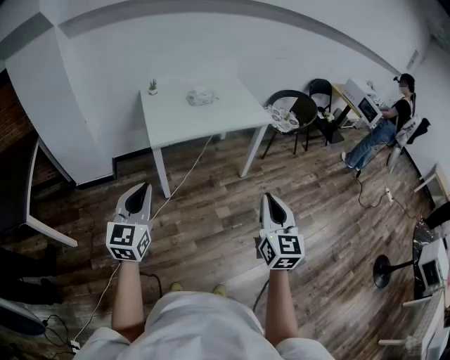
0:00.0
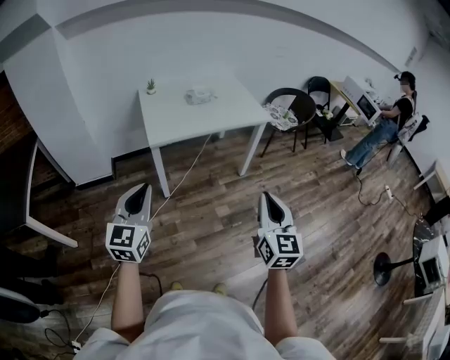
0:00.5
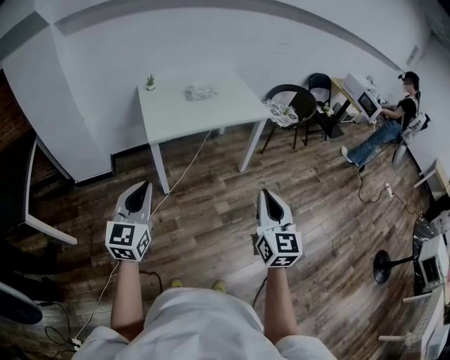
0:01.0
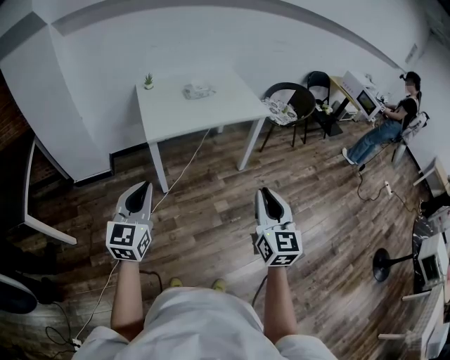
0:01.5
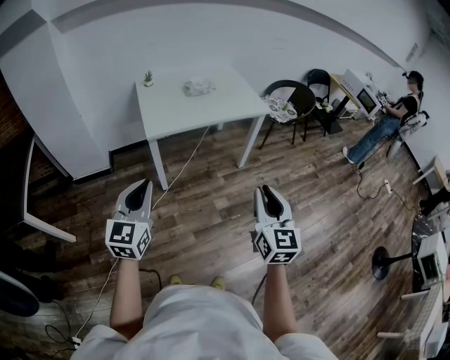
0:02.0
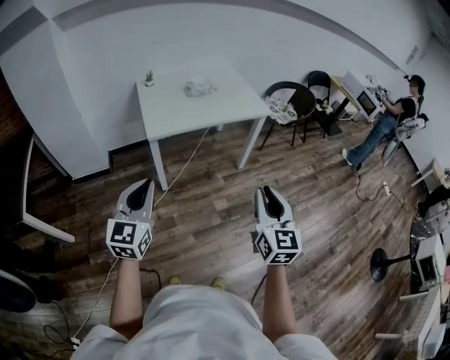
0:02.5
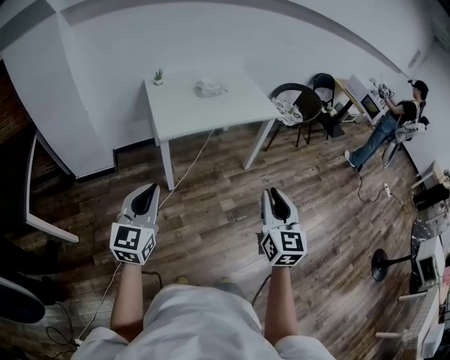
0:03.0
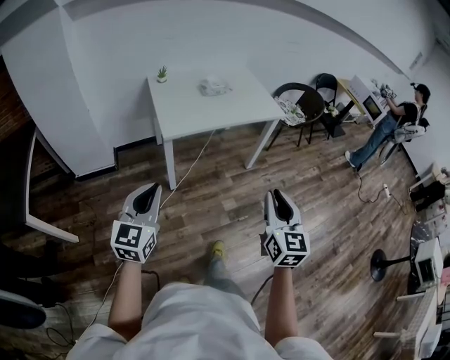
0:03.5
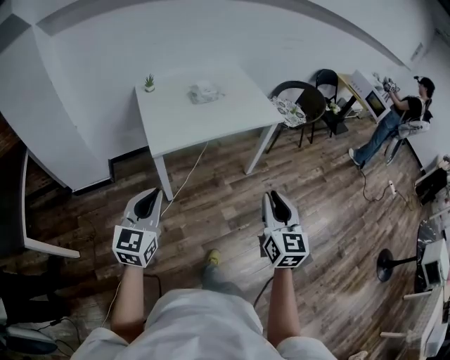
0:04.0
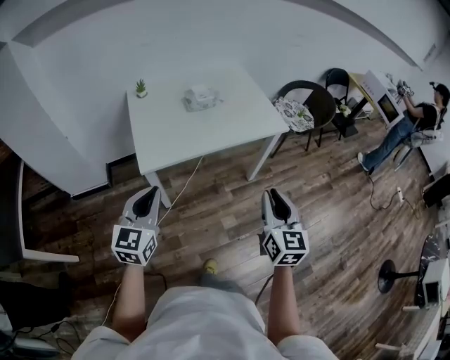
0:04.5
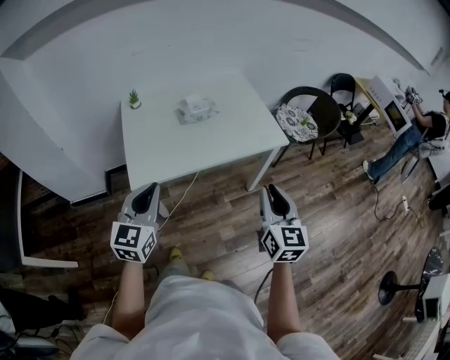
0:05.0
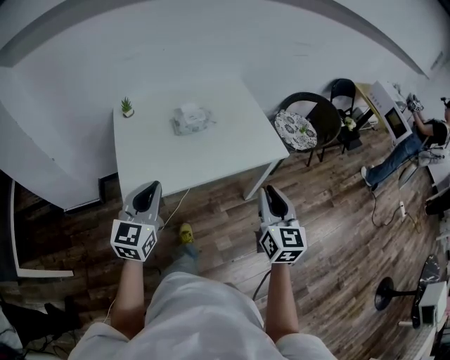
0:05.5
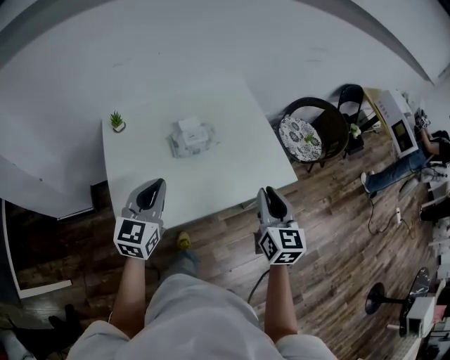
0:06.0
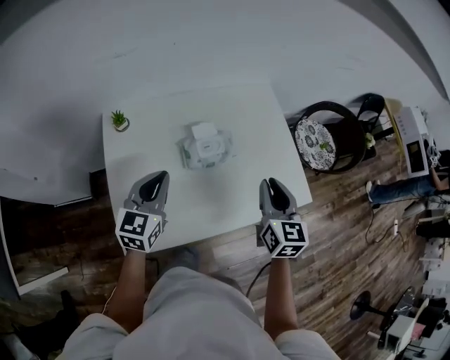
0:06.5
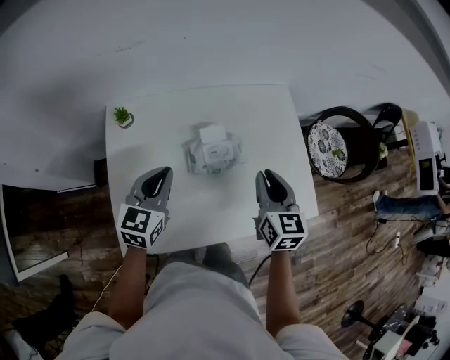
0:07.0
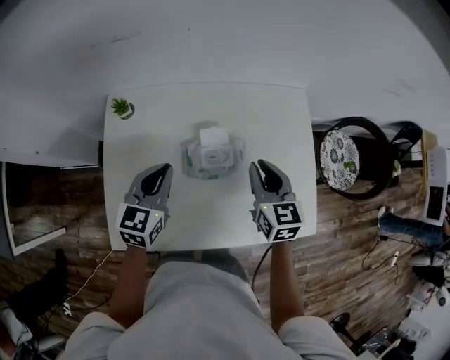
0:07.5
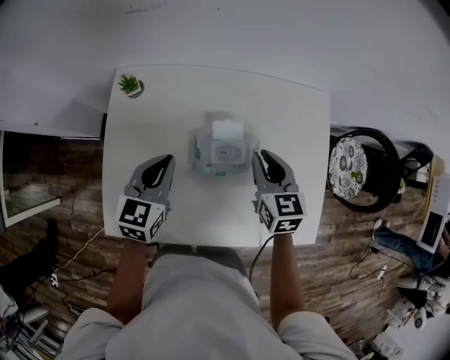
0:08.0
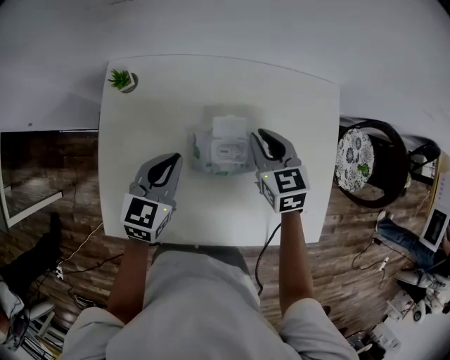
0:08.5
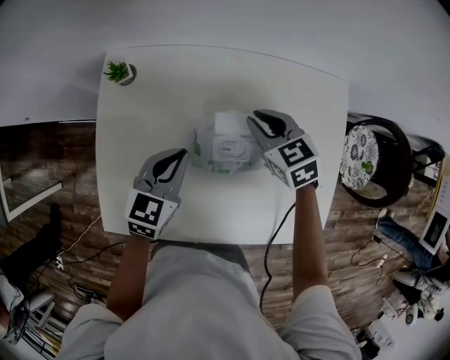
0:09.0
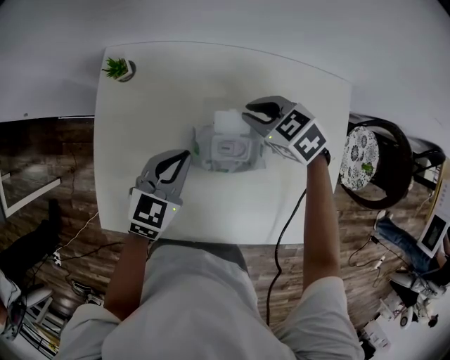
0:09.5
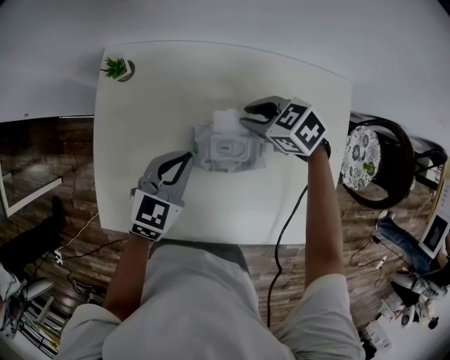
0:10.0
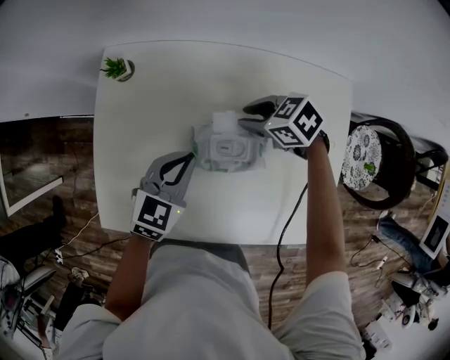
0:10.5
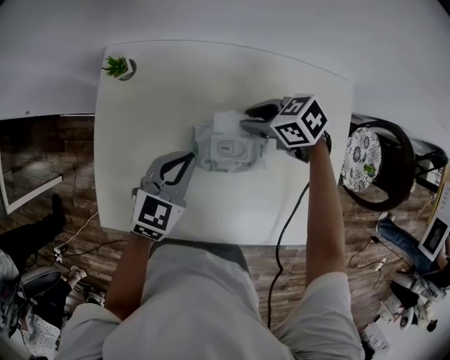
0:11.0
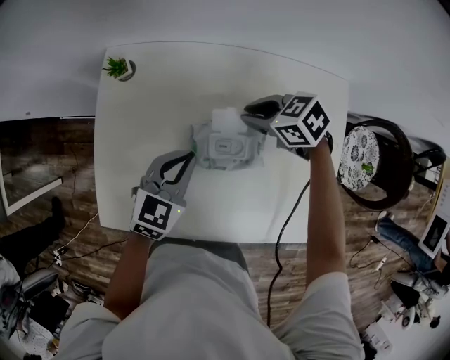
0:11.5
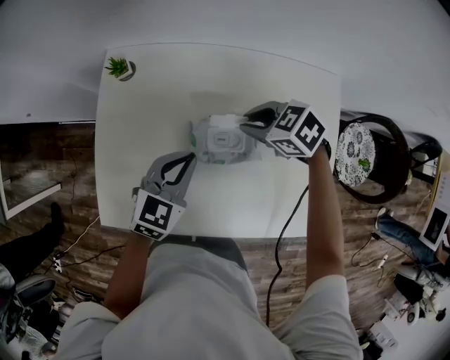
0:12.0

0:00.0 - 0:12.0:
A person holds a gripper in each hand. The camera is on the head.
0:00.0 - 0:02.0: The grippers make only small movements.
0:02.0 - 0:04.0: The grippers both shift forward and to the left by approximately 15 cm.
0:04.0 - 0:06.0: Both grippers are carried forward, about 50 cm.
0:06.0 - 0:08.0: Both grippers travel together forward and downward, about 30 cm. The left gripper swivels some 30 degrees. The right gripper rotates about 40 degrees.
0:08.0 - 0:10.0: The right gripper changes place by some 15 cm, and rotates some 60 degrees. Meanwhile the left gripper heads downward, covering approximately 5 cm.
0:10.0 - 0:12.0: The right gripper shifts by about 5 cm.

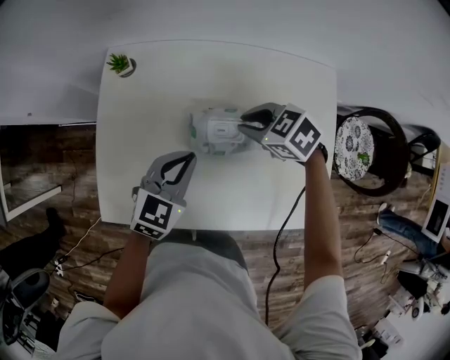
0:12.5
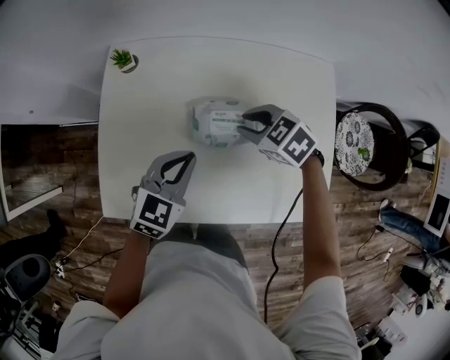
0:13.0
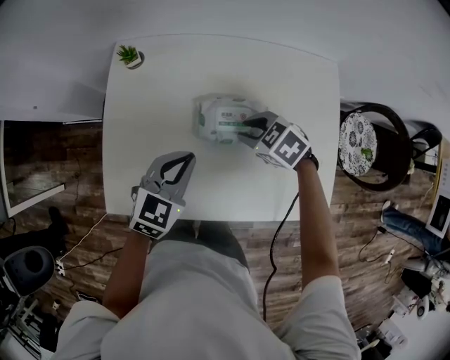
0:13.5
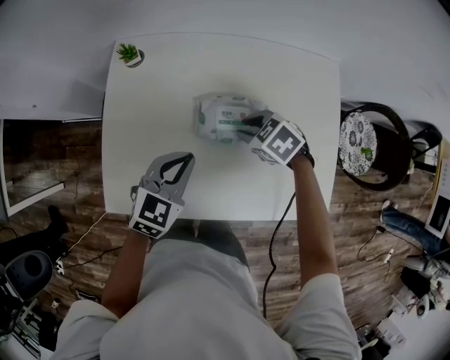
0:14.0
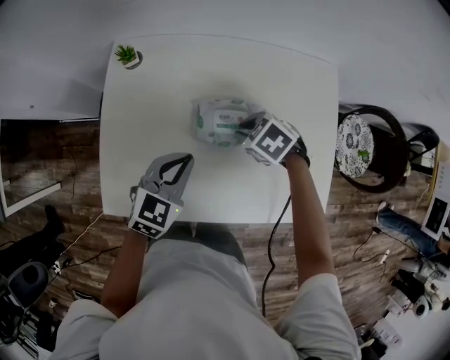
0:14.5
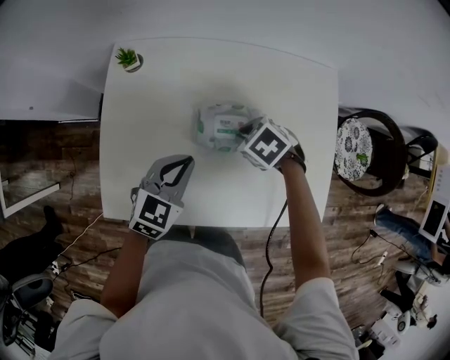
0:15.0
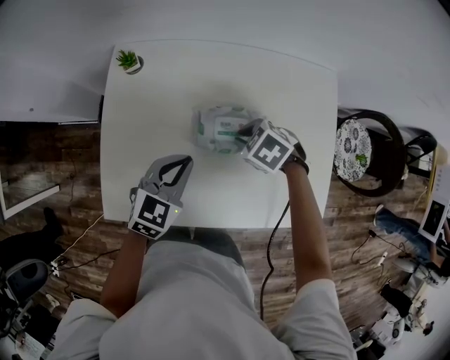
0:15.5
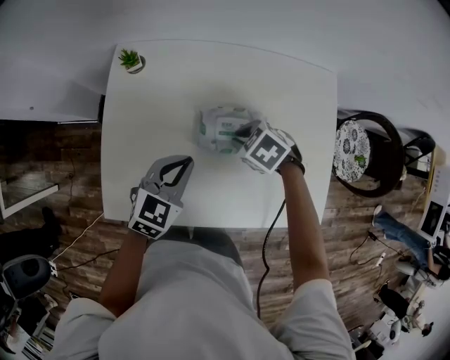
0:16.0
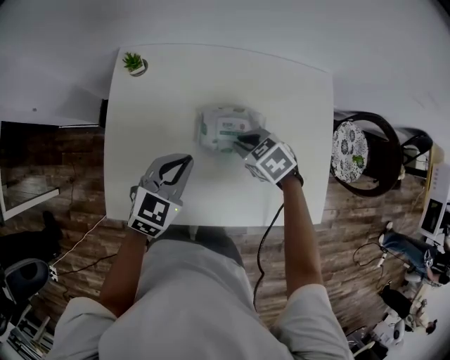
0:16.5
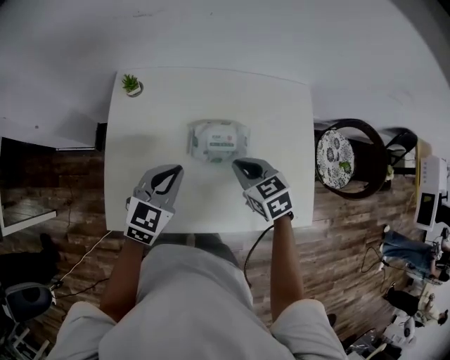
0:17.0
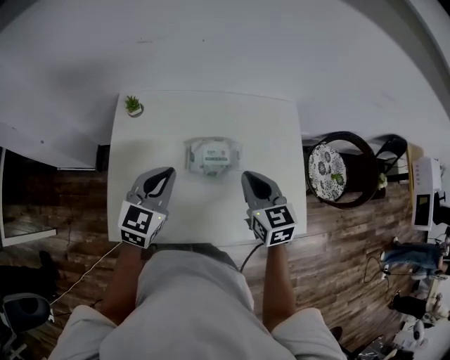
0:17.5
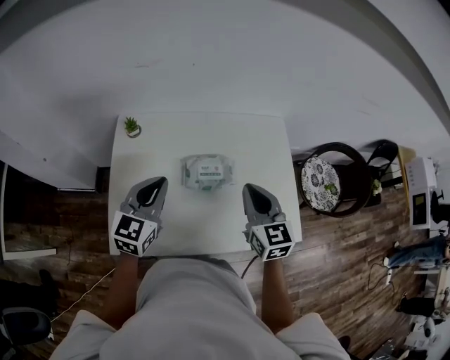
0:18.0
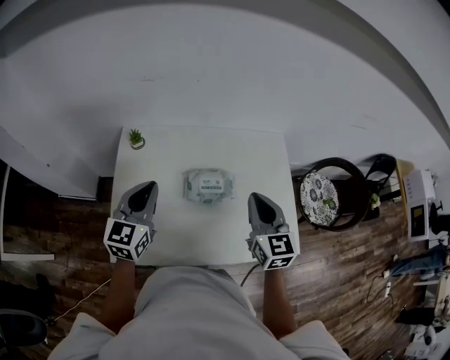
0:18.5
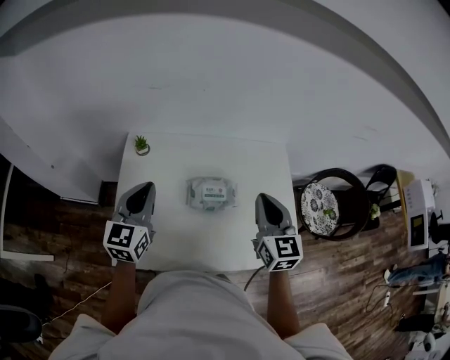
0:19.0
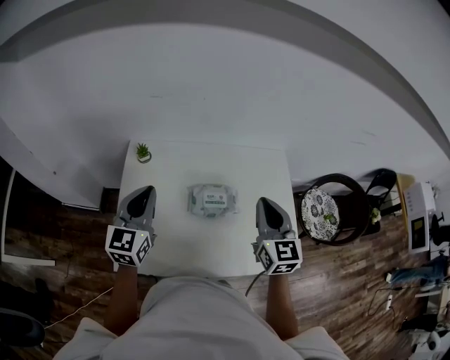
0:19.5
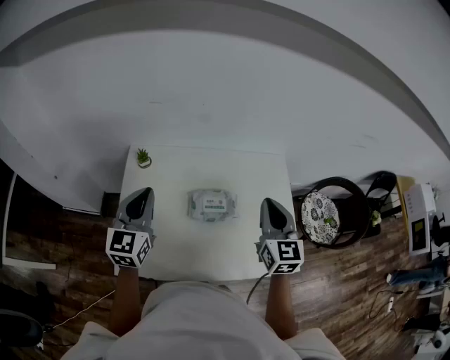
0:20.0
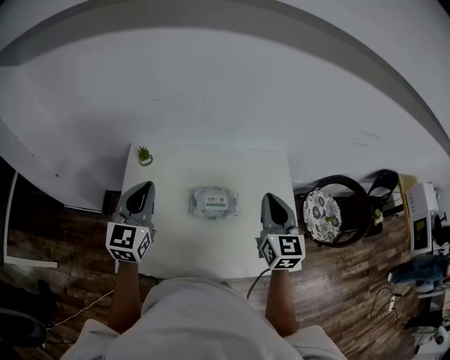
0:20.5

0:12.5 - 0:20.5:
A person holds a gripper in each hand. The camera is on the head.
0:12.5 - 0:14.5: The right gripper shifts about 5 cm downward.
0:14.5 - 0:16.5: The grippers make only small movements.
0:16.5 - 0:18.5: The right gripper is displaced upward by some 25 cm, and tips its fingers upward by some 50 degrees. Meanwhile the left gripper goes some 15 cm upward and to the left, and changes its angle by some 30 degrees.
0:18.5 - 0:20.5: The right gripper ends up roughly 5 cm from where it was, while the left gripper ends up some 5 cm from where it was.

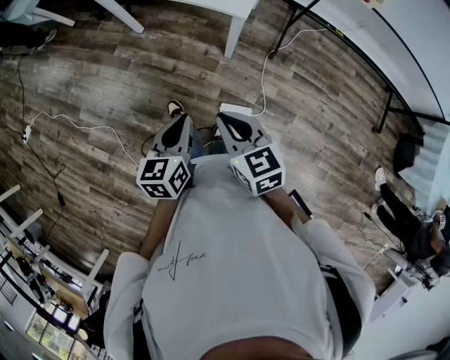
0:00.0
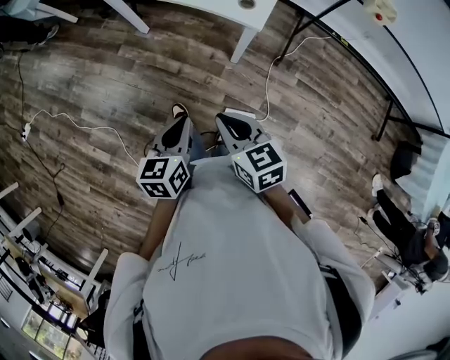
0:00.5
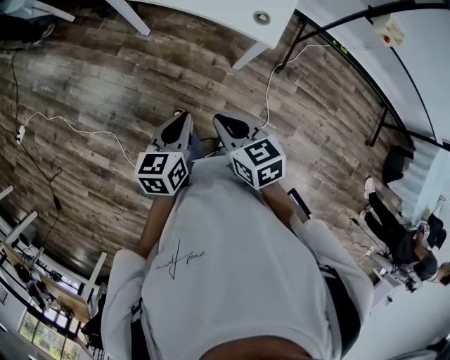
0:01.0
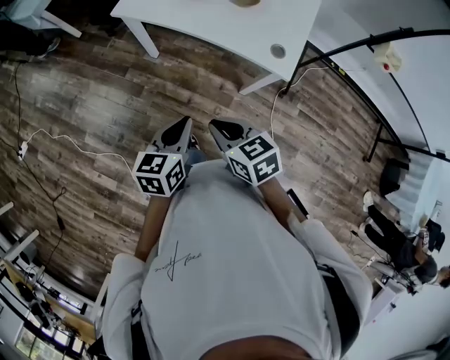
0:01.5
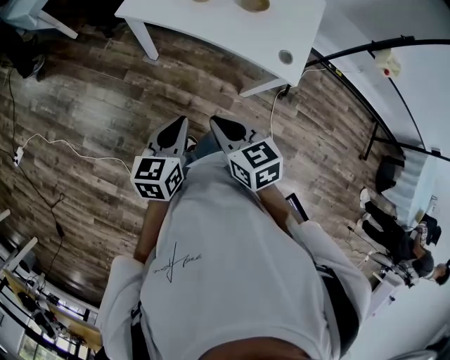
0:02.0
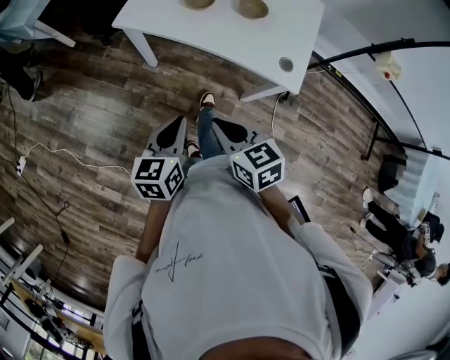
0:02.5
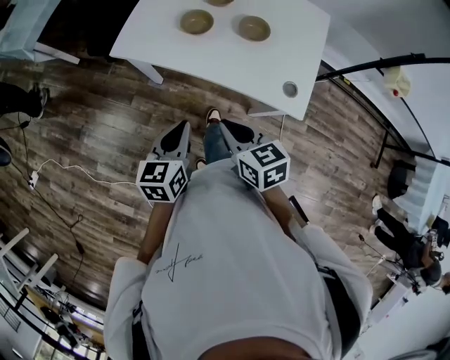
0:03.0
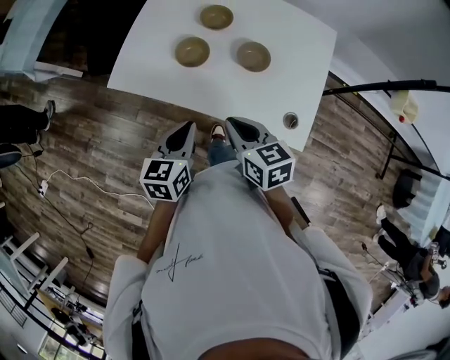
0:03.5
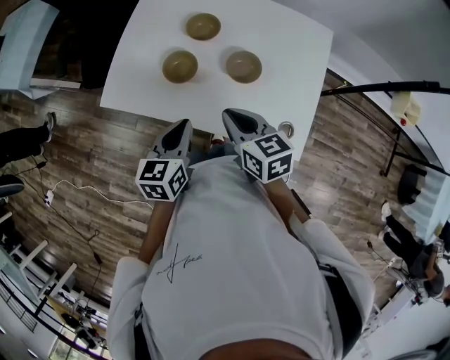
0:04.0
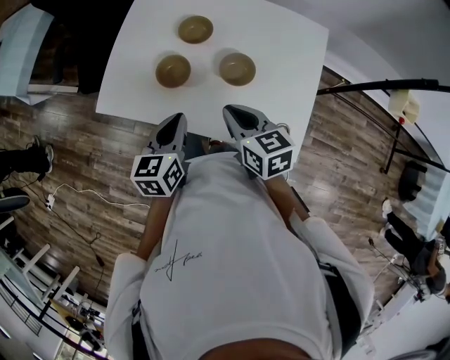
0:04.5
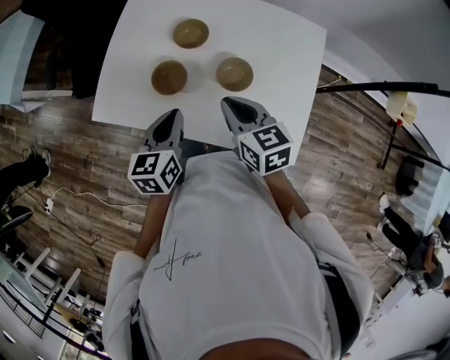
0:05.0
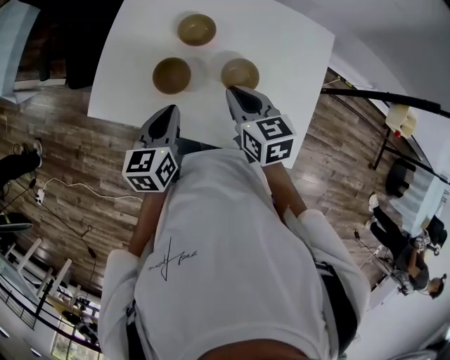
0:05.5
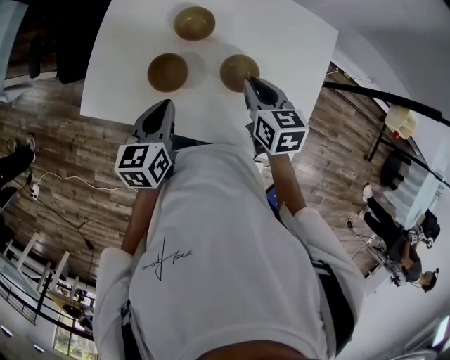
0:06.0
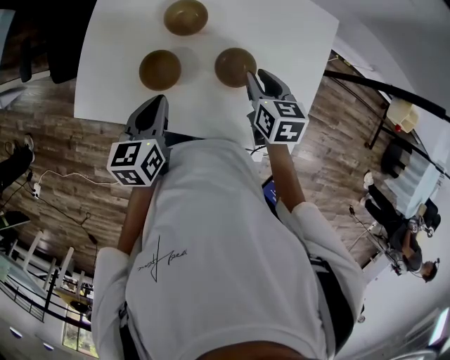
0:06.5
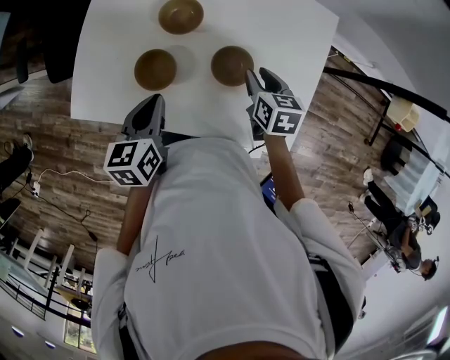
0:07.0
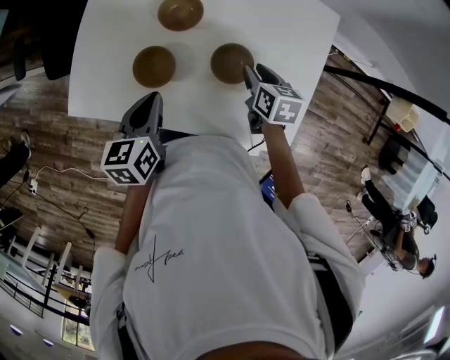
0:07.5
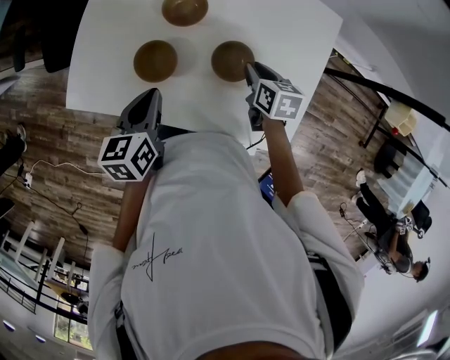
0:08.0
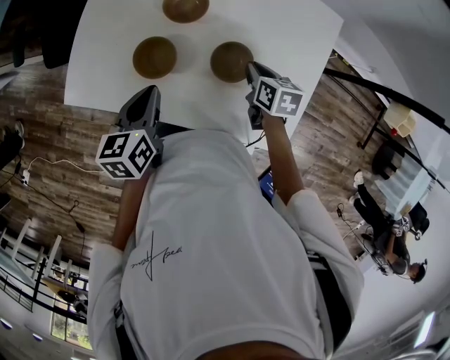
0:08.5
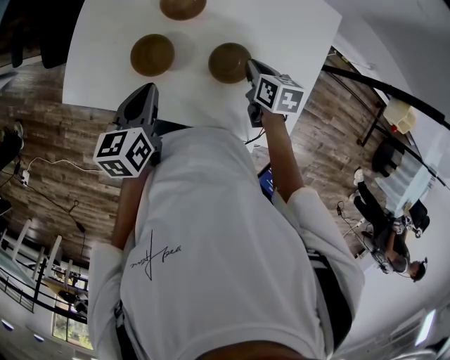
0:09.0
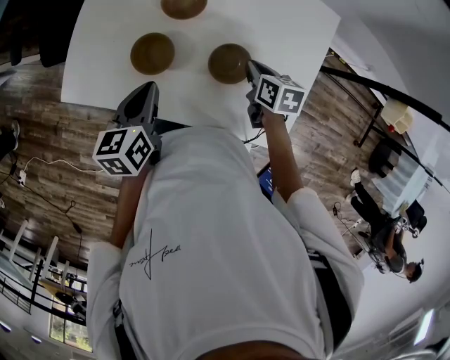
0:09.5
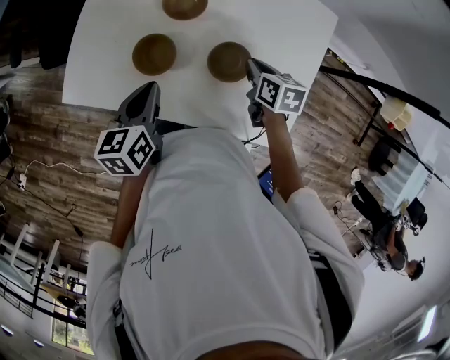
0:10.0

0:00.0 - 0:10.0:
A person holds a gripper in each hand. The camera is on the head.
0:00.0 - 0:02.0: Both grippers move forward and to the left, some 30 cm.
0:02.0 - 0:04.0: Both grippers travel together forward, roughly 30 cm.
0:04.0 - 0:06.0: The right gripper is displaced forward and to the right by roughly 15 cm, while the left gripper heads forward, covering some 10 cm.
0:06.0 - 0:08.0: The right gripper heads downward, covering roughly 10 cm.
0:08.0 - 0:10.0: The two grippers keep their place.
